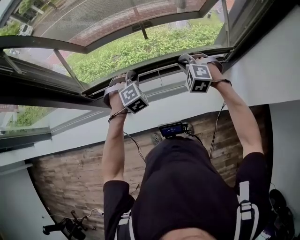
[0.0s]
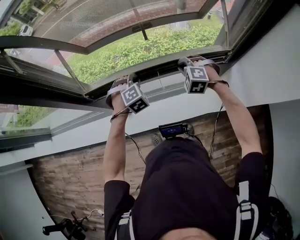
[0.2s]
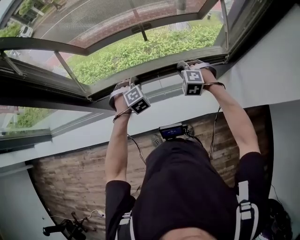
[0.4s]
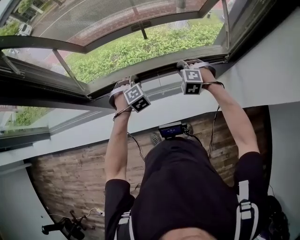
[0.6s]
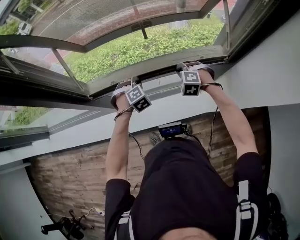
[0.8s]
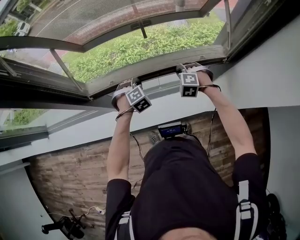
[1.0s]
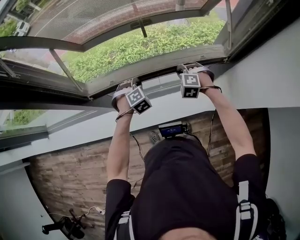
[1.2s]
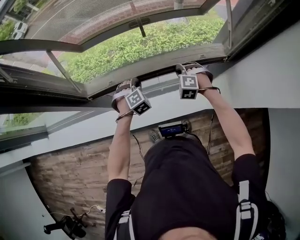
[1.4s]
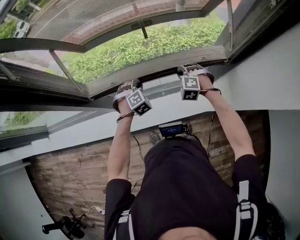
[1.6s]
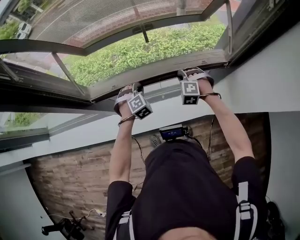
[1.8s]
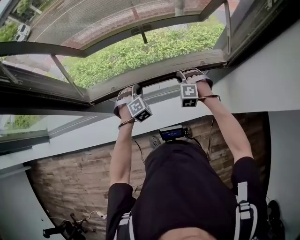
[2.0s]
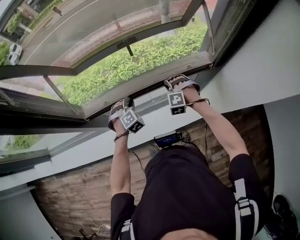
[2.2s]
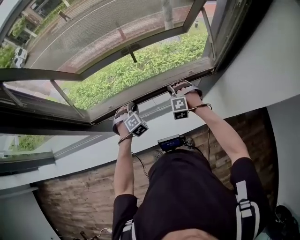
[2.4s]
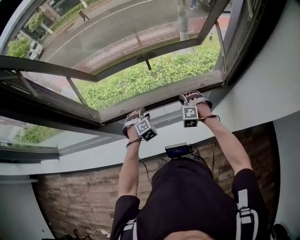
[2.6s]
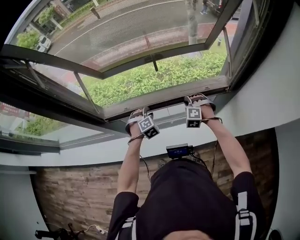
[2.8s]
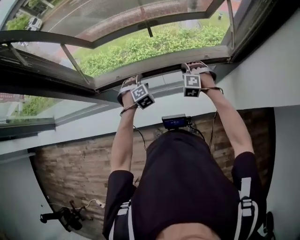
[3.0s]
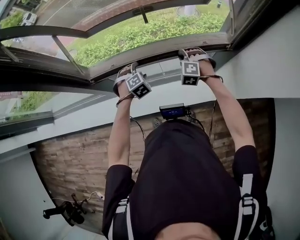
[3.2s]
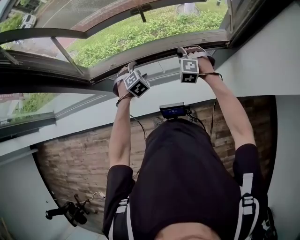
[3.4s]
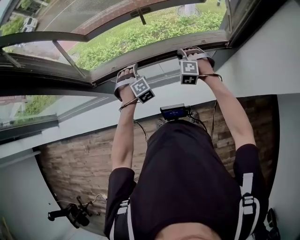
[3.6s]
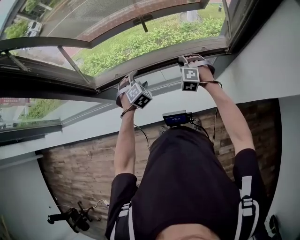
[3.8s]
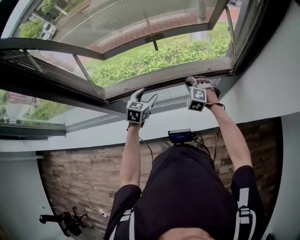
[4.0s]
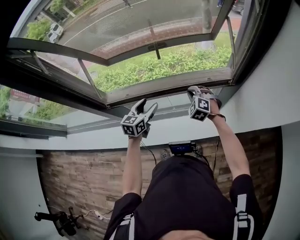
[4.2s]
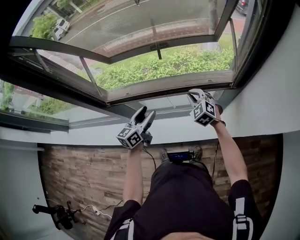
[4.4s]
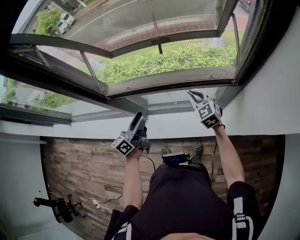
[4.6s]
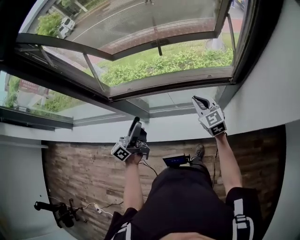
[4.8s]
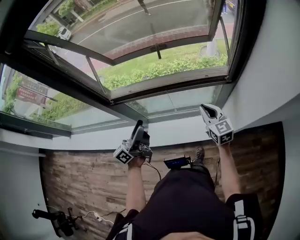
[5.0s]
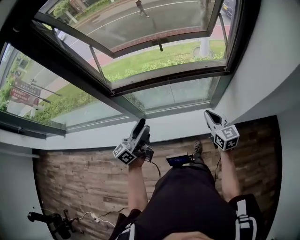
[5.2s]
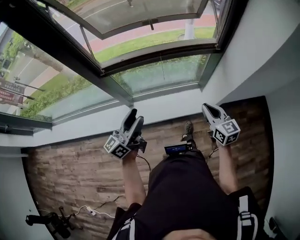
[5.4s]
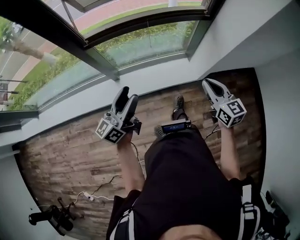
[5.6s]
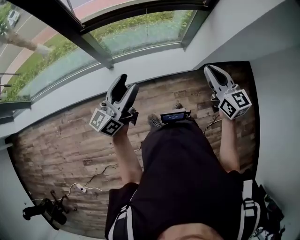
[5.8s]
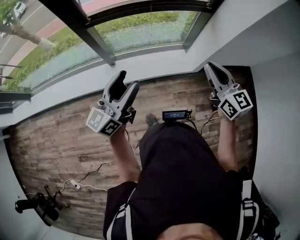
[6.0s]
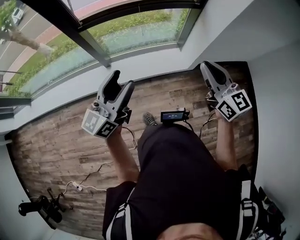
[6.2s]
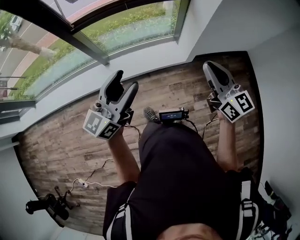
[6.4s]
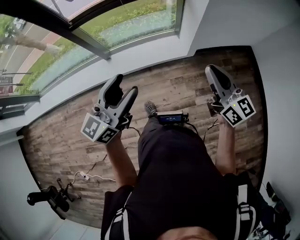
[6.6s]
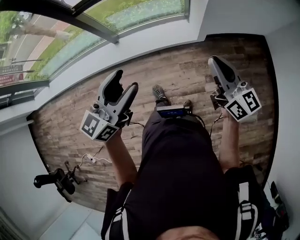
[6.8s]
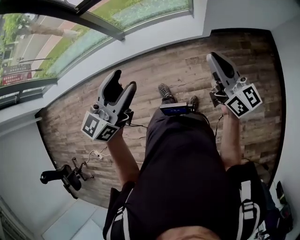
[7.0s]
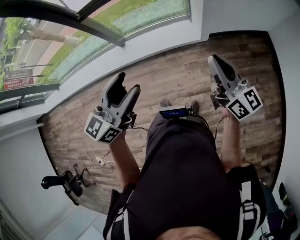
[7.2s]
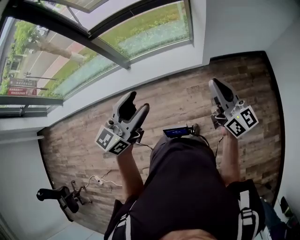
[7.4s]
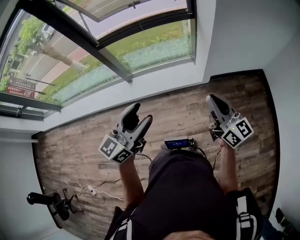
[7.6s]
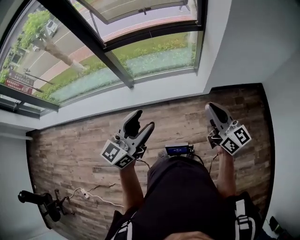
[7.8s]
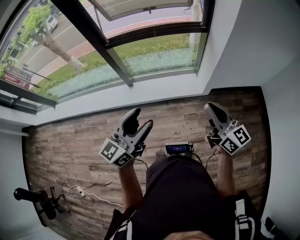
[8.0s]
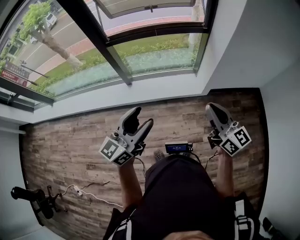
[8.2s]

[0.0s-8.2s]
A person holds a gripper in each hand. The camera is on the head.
0.0s to 1.6s: Both grippers move downward, about 10 cm.
1.6s to 3.2s: The left gripper opens its fingers.
3.2s to 5.0s: The left gripper goes some 30 cm upward and backward, and tips its fingers upward by about 80 degrees, while the right gripper heads backward, upward and to the right, covering about 20 cm, and twists about 70 degrees clockwise, seen from behind.
5.0s to 6.6s: The right gripper travels backward by roughly 40 cm, and swivels some 20 degrees, while the left gripper goes about 40 cm backward and to the right, and rotates some 40 degrees.
6.6s to 8.2s: The left gripper moves backward and to the left, approximately 10 cm; the right gripper heads to the left, covering some 10 cm.

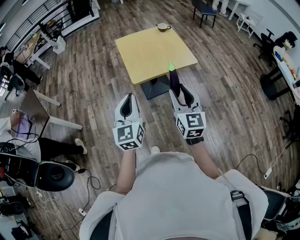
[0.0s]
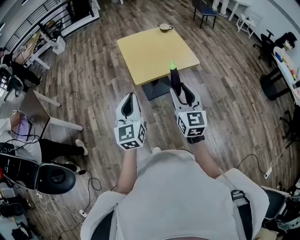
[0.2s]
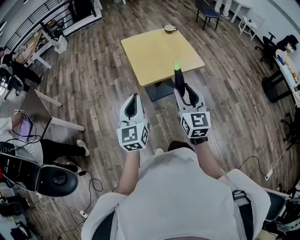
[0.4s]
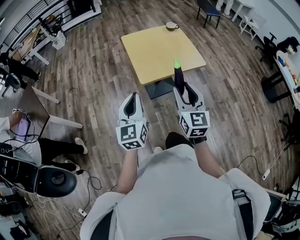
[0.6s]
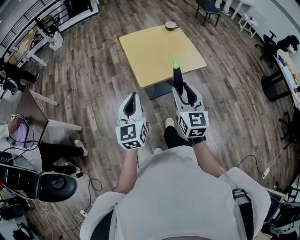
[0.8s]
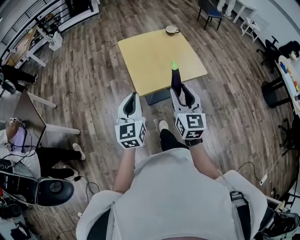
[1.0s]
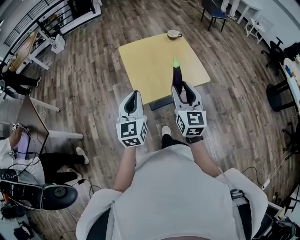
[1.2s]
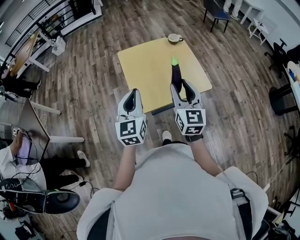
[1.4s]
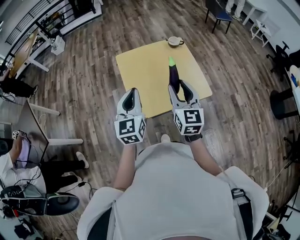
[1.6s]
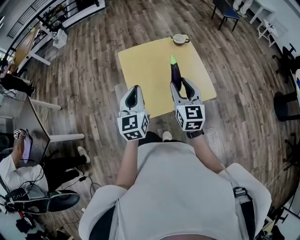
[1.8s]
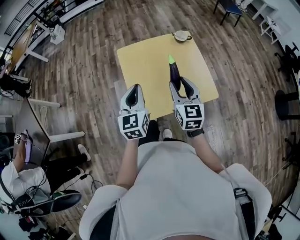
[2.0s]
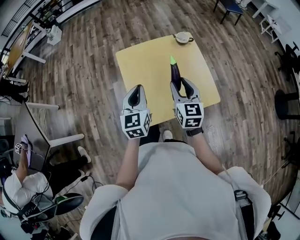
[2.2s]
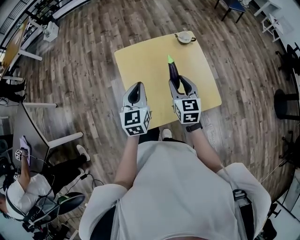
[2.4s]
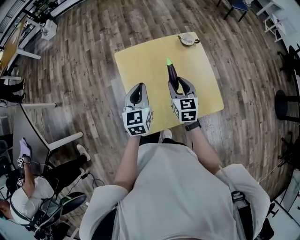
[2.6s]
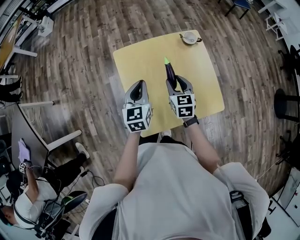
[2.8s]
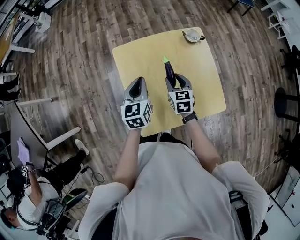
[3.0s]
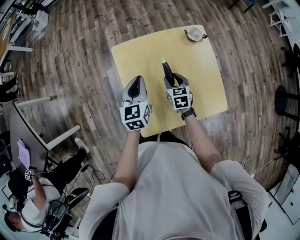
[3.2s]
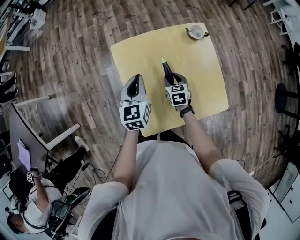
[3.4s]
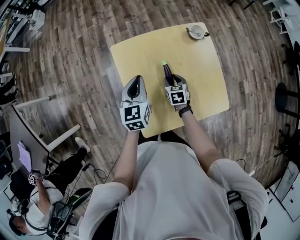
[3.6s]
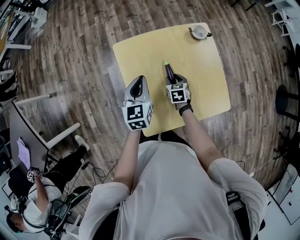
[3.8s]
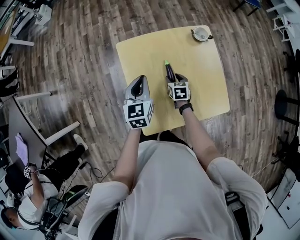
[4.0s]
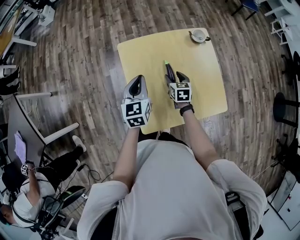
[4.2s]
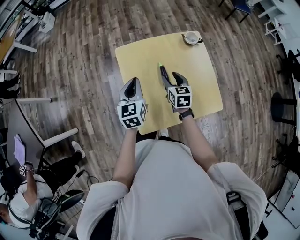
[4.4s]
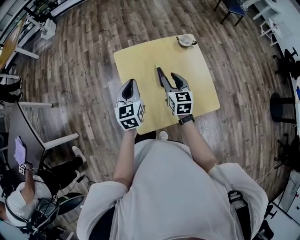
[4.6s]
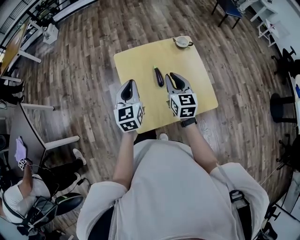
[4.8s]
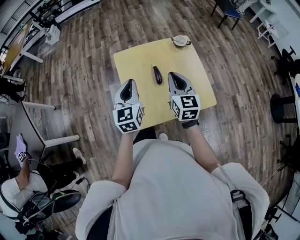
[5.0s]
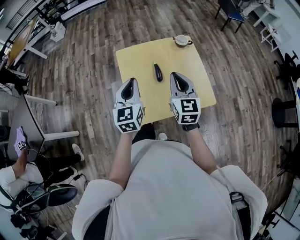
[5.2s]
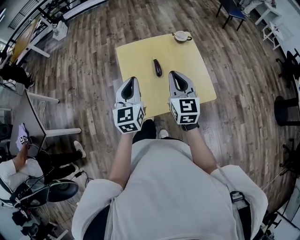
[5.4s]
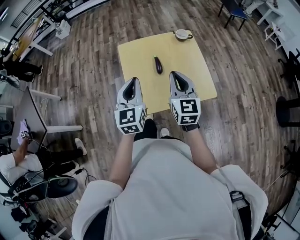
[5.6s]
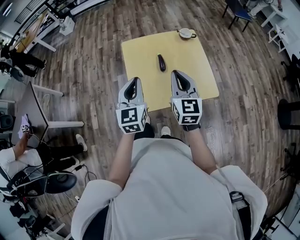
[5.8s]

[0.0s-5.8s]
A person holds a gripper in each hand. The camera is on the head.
0.0s to 1.4s: Both grippers travel together forward, about 30 cm.
1.4s to 2.8s: Both grippers move forward and downward, about 35 cm. The right gripper rotates approximately 30 degrees.
2.8s to 4.4s: The right gripper travels downward and back again, approximately 15 cm each way.
4.4s to 5.8s: The left gripper shifts approximately 20 cm backward and upward; the right gripper heads upward and backward, covering about 30 cm, swivels approximately 30 degrees, and closes.

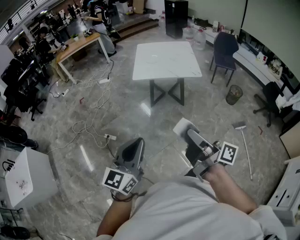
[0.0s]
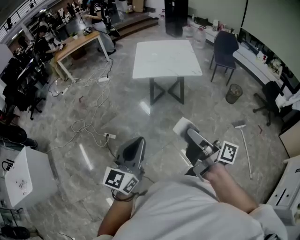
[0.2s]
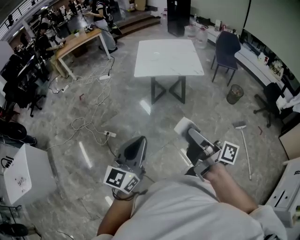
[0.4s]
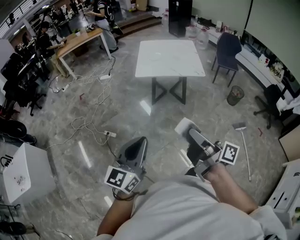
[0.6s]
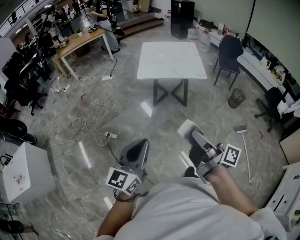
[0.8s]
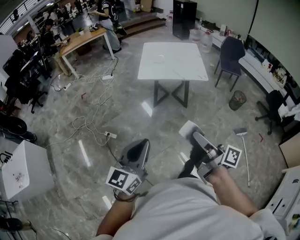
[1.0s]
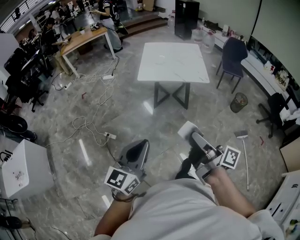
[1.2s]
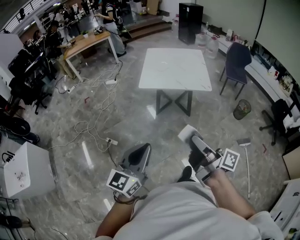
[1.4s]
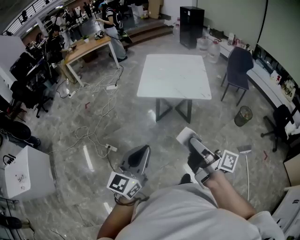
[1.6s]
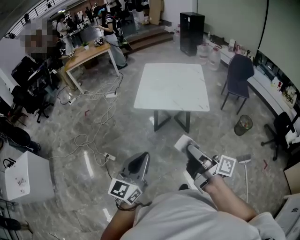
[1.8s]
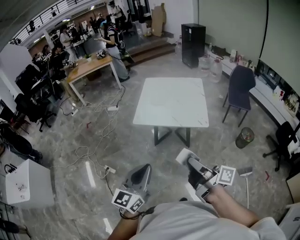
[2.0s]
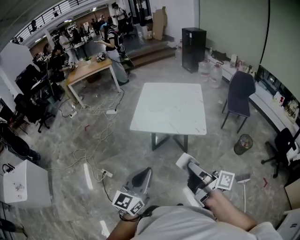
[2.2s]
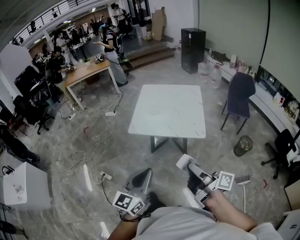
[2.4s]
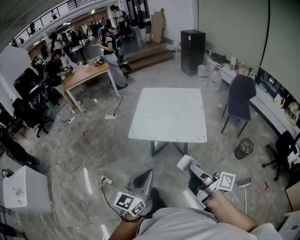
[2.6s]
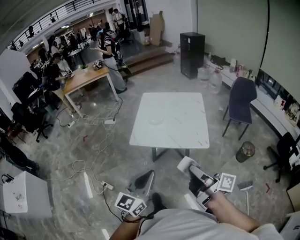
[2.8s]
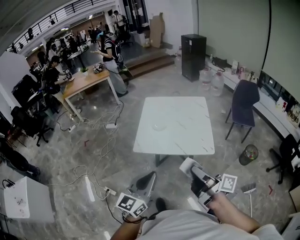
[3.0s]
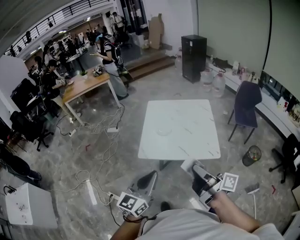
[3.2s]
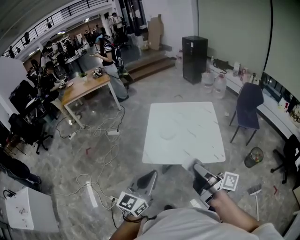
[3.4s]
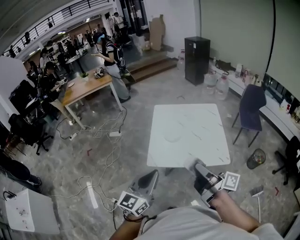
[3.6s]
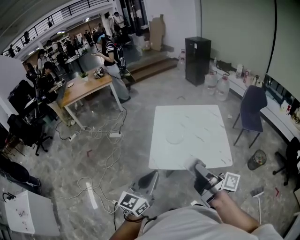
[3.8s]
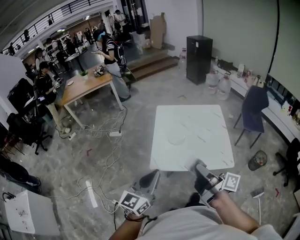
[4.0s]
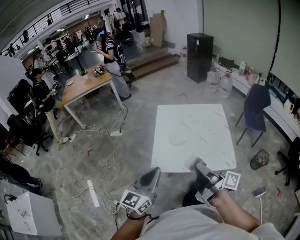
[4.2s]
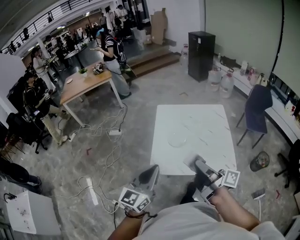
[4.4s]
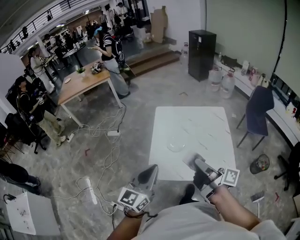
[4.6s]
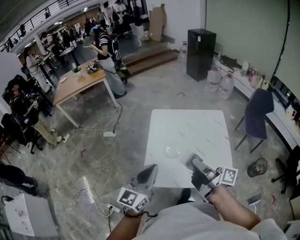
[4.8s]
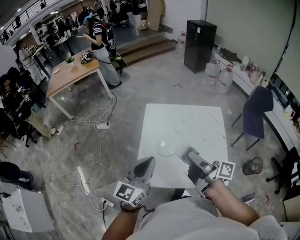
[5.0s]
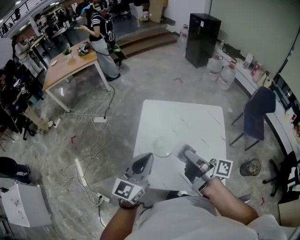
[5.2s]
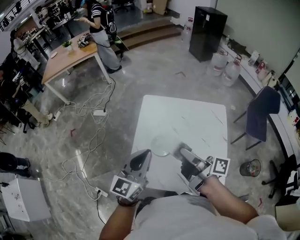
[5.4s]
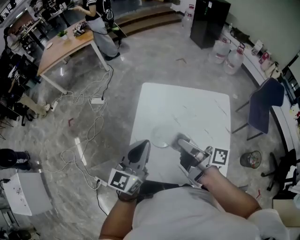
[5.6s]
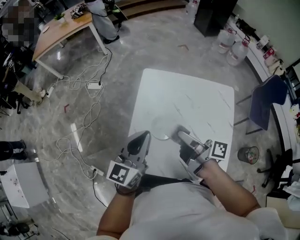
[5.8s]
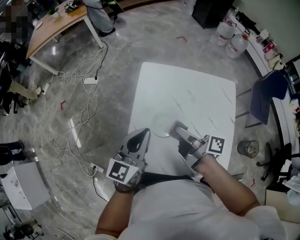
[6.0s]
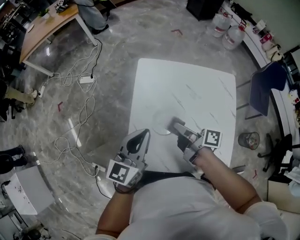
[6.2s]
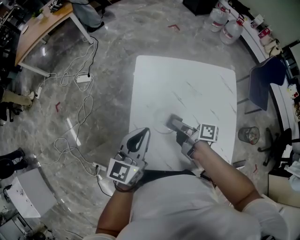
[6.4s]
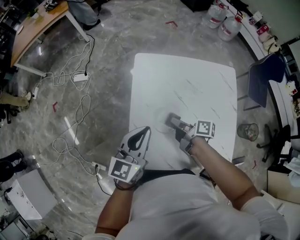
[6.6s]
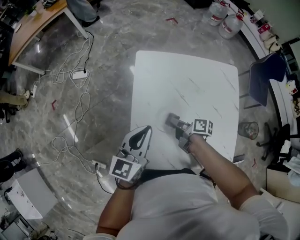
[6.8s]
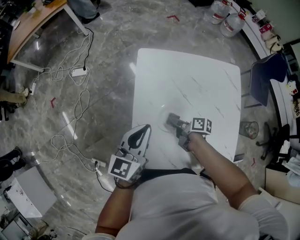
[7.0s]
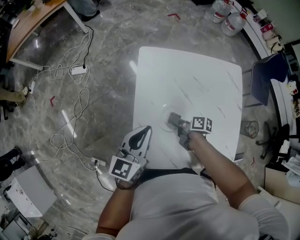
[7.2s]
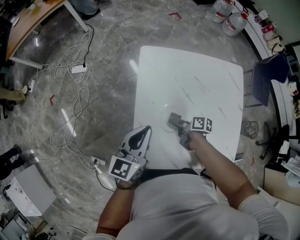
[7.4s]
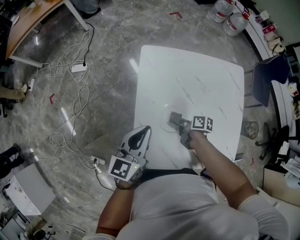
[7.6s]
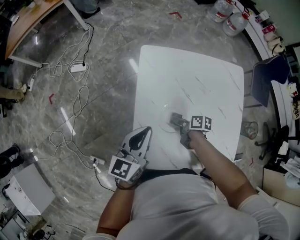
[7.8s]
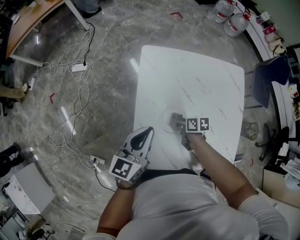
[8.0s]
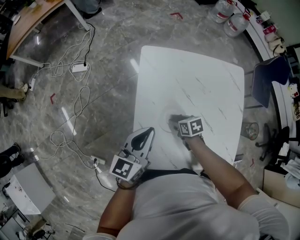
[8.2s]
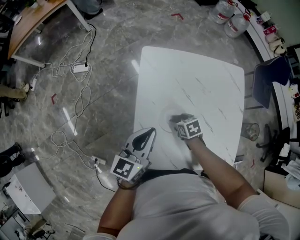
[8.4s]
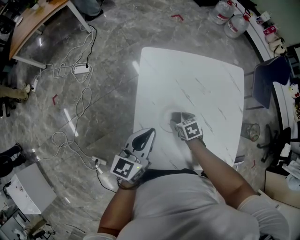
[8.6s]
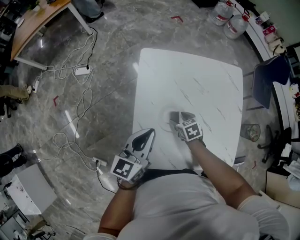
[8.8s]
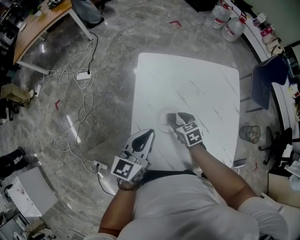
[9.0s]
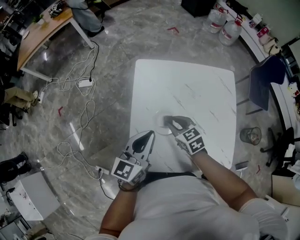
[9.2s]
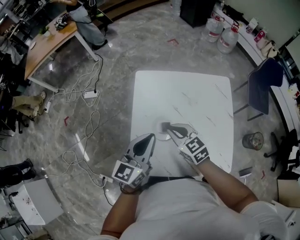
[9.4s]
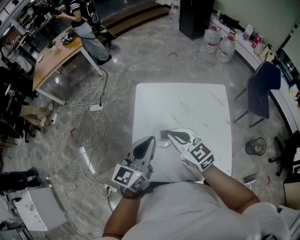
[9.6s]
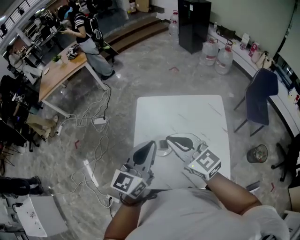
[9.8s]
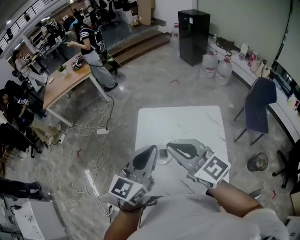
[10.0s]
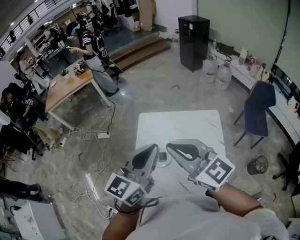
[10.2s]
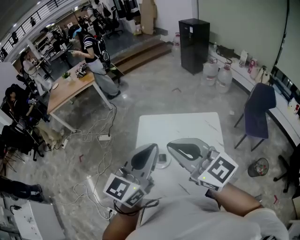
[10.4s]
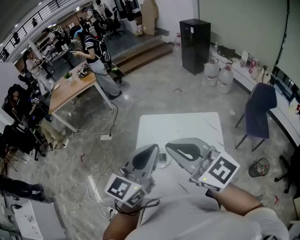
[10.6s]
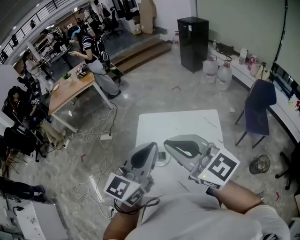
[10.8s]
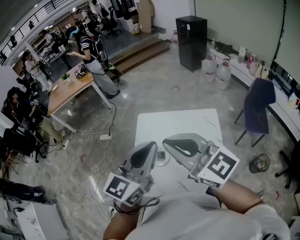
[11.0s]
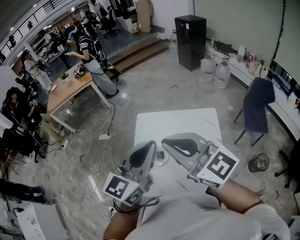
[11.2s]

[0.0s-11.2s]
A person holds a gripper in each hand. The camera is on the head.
0.0s to 1.6s: The right gripper heads forward, covering approximately 20 cm; the left gripper travels forward and to the right by roughly 20 cm.
1.6s to 3.2s: Both grippers move forward, about 35 cm.
3.2s to 4.8s: Both grippers travel together forward, approximately 35 cm.
4.8s to 6.4s: Both grippers travel together forward and downward, roughly 35 cm. The right gripper turns by approximately 30 degrees.
6.4s to 8.0s: The left gripper heads downward, covering roughly 10 cm. Meanwhile the right gripper shifts roughly 15 cm downward, and turns by about 40 degrees.
8.0s to 9.6s: The left gripper travels upward and to the right by roughly 20 cm. The right gripper is displaced upward by about 35 cm, rolls counterclockwise, seen from behind, by roughly 60 degrees, and closes its fingers.
9.6s to 11.2s: The left gripper heads upward, to the right and backward, covering roughly 25 cm; the right gripper travels upward and backward by about 30 cm, and turns by roughly 20 degrees.
